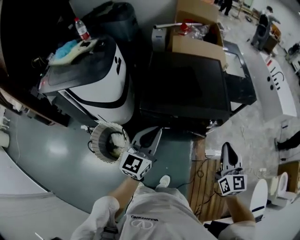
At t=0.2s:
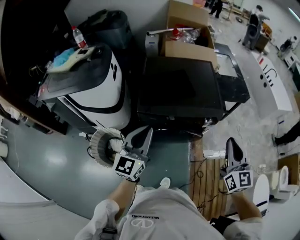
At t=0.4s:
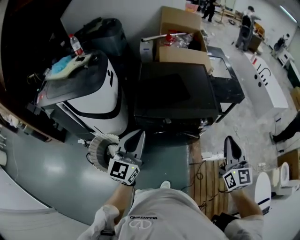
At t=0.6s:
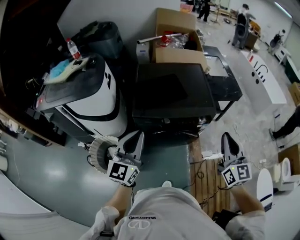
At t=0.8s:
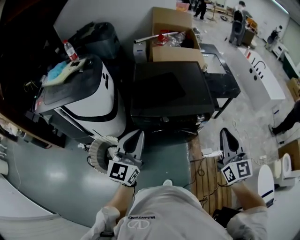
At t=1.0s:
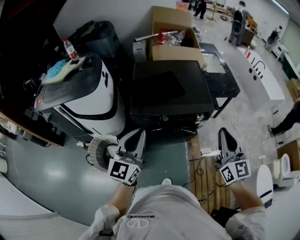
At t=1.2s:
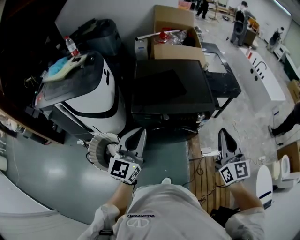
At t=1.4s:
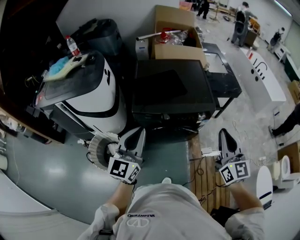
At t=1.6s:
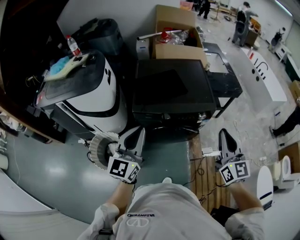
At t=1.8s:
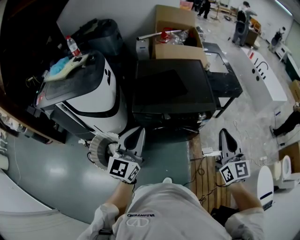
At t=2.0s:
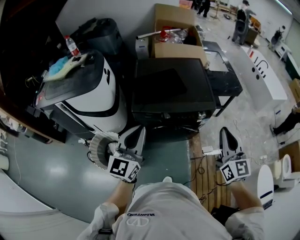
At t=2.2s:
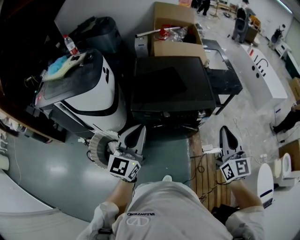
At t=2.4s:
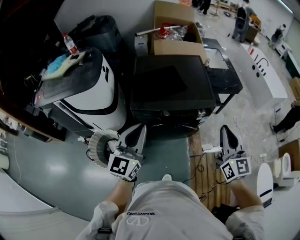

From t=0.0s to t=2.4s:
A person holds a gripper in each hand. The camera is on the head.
From t=0.0s to t=1.2s: The right gripper travels upward and backward by roughly 10 cm, while the left gripper heads backward and upward, covering about 10 cm.
From t=1.2s to t=2.4s: The grippers stay close to where they were, moving slightly.

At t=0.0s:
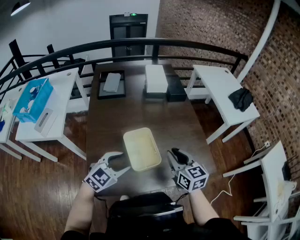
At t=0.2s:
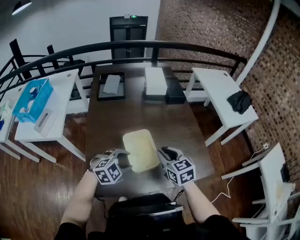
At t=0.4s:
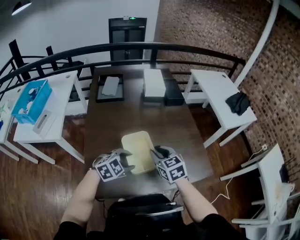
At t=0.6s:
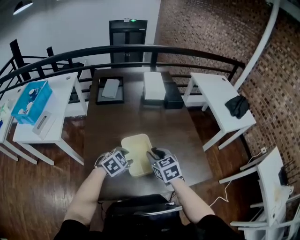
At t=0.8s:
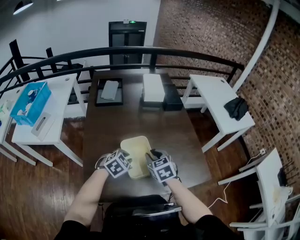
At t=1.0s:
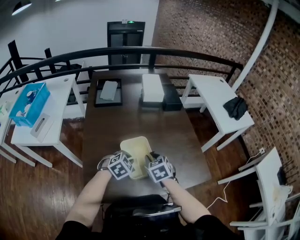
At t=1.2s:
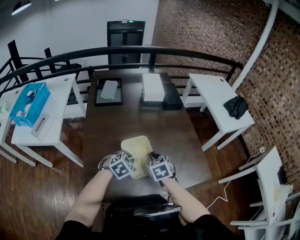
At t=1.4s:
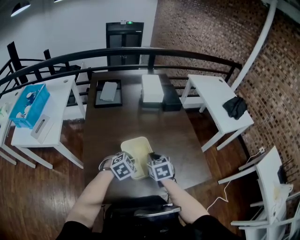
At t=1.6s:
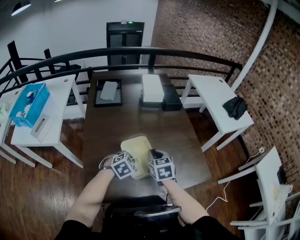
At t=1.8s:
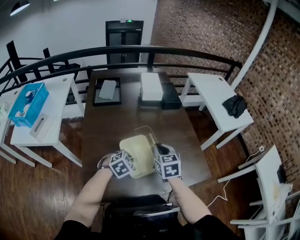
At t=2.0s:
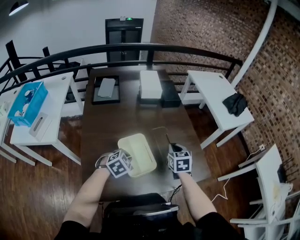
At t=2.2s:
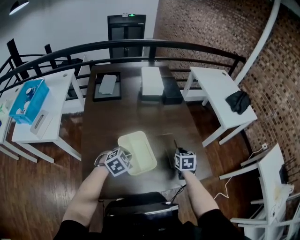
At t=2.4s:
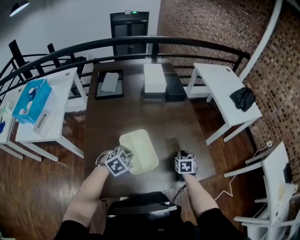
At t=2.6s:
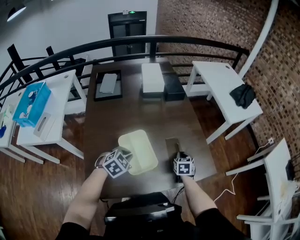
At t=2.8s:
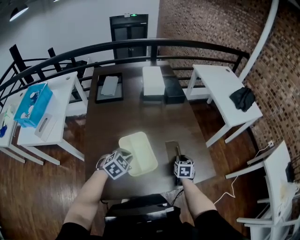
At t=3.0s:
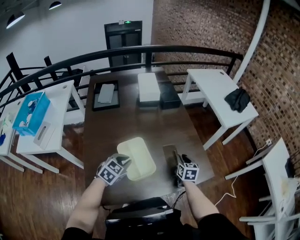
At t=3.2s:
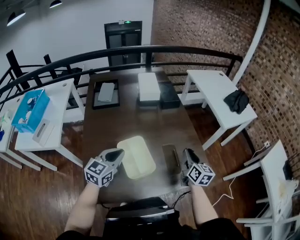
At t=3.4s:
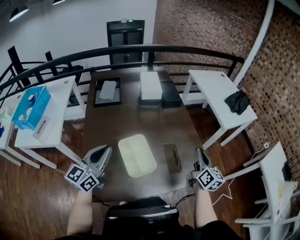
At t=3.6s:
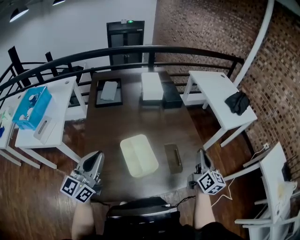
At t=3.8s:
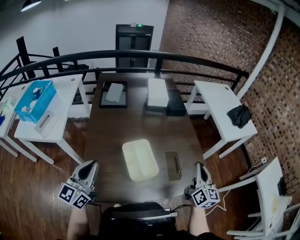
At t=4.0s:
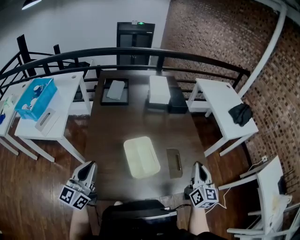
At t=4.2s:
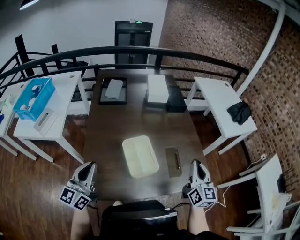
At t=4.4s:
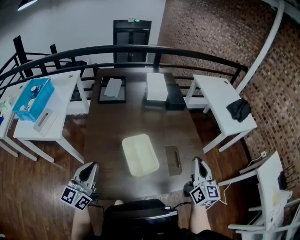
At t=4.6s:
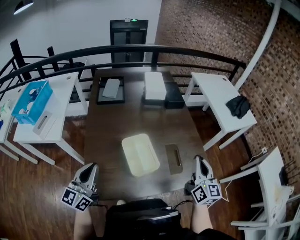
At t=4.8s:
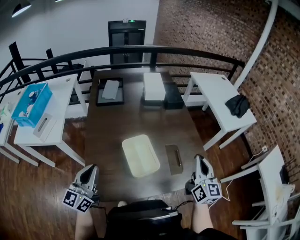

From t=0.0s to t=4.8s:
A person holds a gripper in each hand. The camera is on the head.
From t=0.0s to t=1.6s: The right gripper heads downward and to the left, covering about 10 cm, and turns by about 20 degrees, while the left gripper is displaced downward and forward by some 10 cm, changes its angle by roughly 30 degrees, and closes its fingers.
From t=1.6s to t=3.2s: The left gripper is displaced upward by some 10 cm, and tips its fingers upward by some 40 degrees, while the right gripper moves to the right, roughly 20 cm, swivels some 40 degrees, and opens its fingers.
From t=3.2s to t=4.8s: The right gripper heads upward and backward, covering some 15 cm, and closes up; the left gripper is displaced backward and to the left by some 20 cm, and swivels approximately 30 degrees.

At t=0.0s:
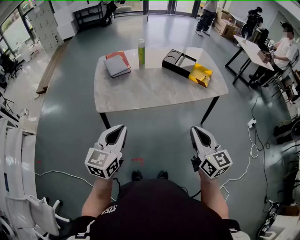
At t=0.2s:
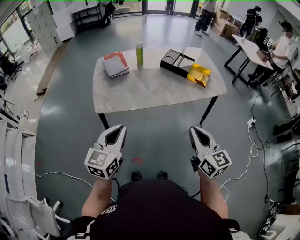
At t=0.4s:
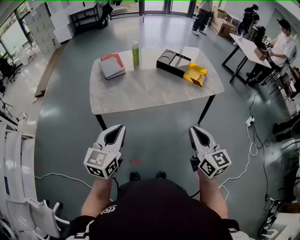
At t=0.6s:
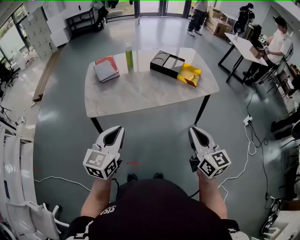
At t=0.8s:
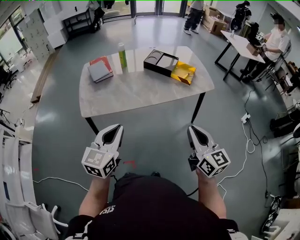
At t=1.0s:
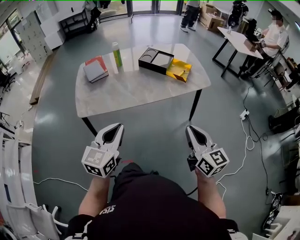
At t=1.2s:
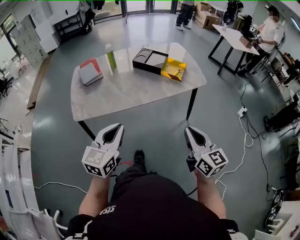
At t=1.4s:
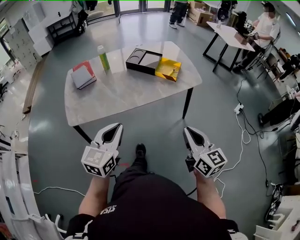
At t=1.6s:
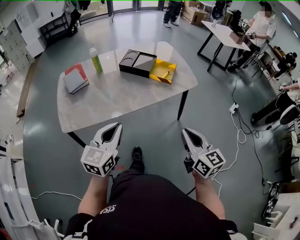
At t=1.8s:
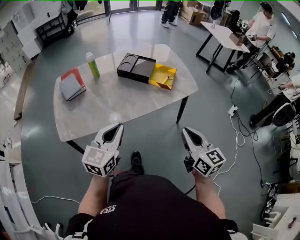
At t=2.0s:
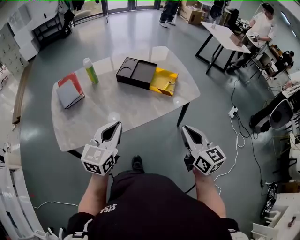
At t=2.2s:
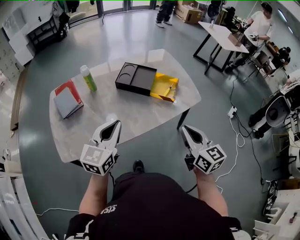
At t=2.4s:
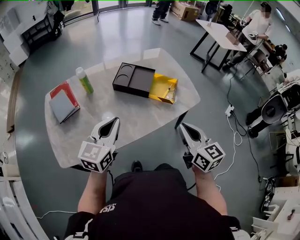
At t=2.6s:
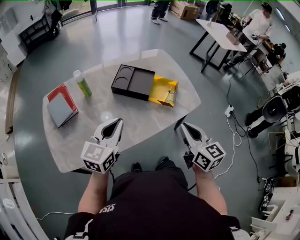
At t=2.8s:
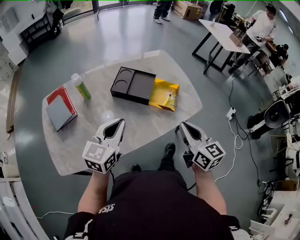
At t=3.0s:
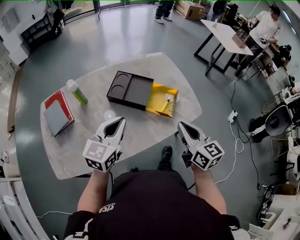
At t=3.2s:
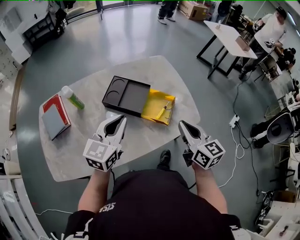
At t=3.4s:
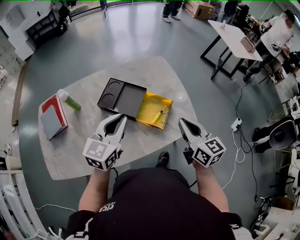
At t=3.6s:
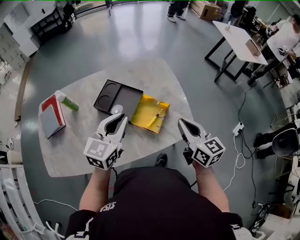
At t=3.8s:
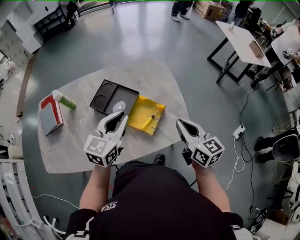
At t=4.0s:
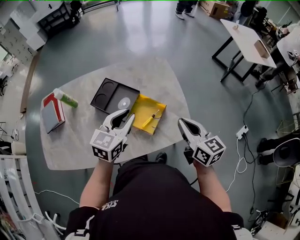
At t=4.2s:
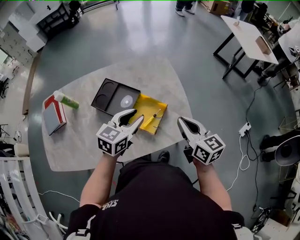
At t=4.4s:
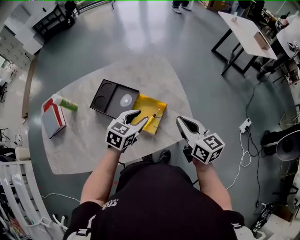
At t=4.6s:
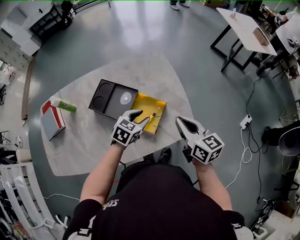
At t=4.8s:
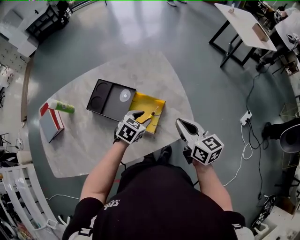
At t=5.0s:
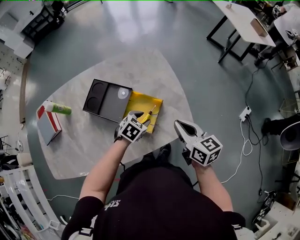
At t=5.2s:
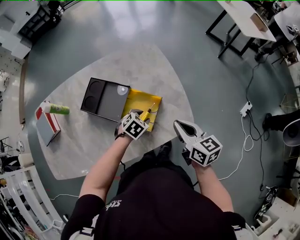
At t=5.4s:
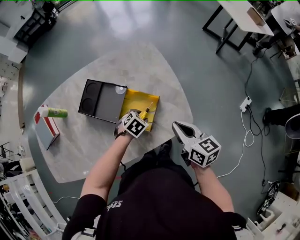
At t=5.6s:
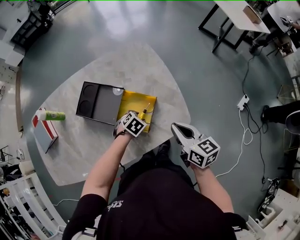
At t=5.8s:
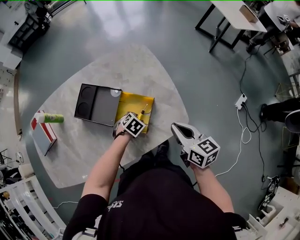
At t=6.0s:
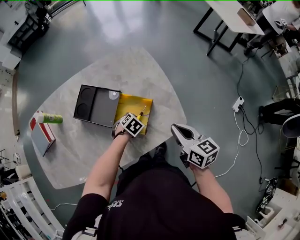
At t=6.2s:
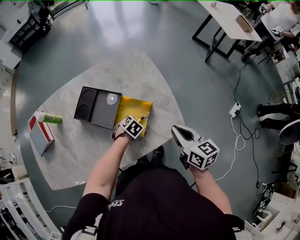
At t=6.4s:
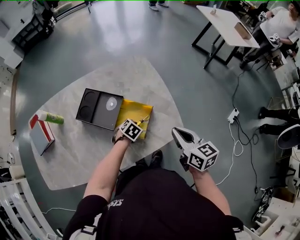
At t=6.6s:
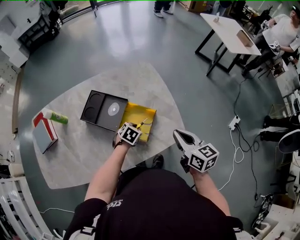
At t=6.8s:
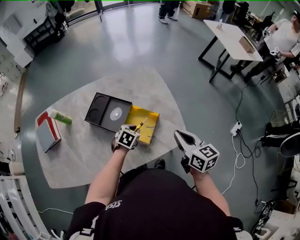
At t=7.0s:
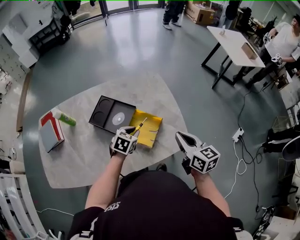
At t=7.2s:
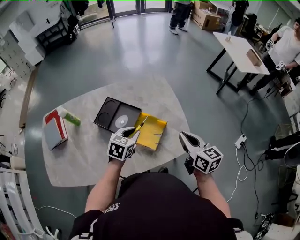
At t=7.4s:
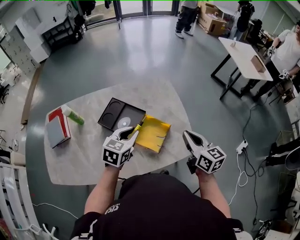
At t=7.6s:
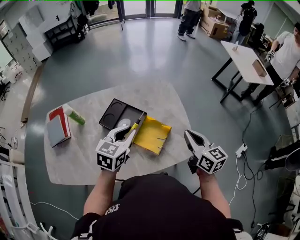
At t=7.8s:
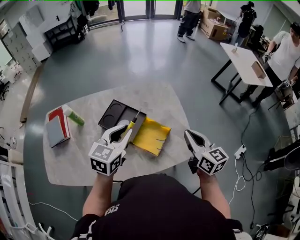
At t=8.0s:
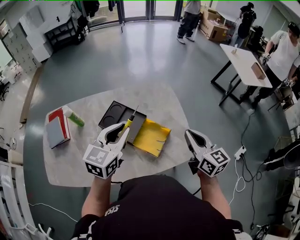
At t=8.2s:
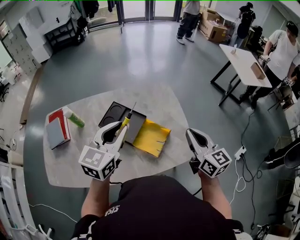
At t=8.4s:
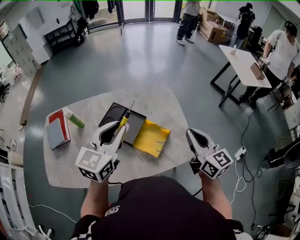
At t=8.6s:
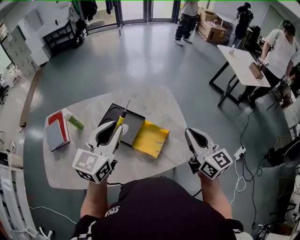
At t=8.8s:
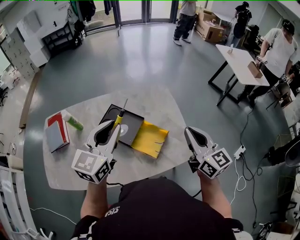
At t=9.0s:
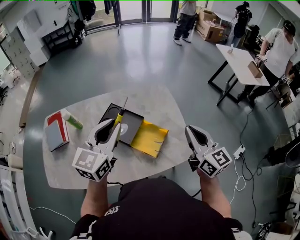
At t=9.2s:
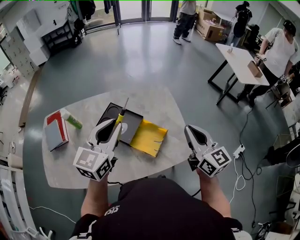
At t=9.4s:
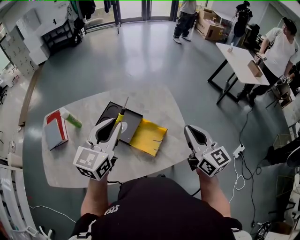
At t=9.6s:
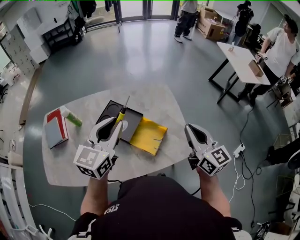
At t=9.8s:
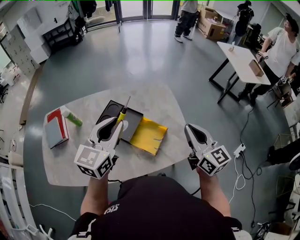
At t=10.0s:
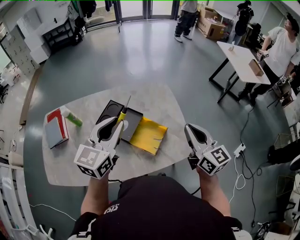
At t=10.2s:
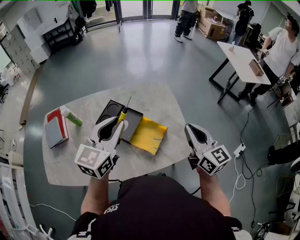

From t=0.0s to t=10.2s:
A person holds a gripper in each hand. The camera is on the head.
From t=0.0s to t=1.4s: Both grippers travel together to the right, about 15 cm.
From t=1.4s to t=3.0s: Both grippers travel together forward, roughly 35 cm.
From t=3.0s to t=4.4s: The left gripper moves to the right, forward and downward, some 30 cm, turns by approximately 20 degrees, and opens up. The right gripper shifts roughly 20 cm to the right and forward.
From t=4.4s to t=5.8s: The right gripper moves downward, roughly 5 cm. The left gripper moves downward, roughly 20 cm, and tilts its fingers approximately 40 degrees downward.
From t=5.8s to t=7.2s: The right gripper goes some 5 cm upward, while the left gripper goes approximately 20 cm upward, tilts its fingers approximately 30 degrees upward, and closes its fingers.
From t=7.2s to t=8.8s: The left gripper is displaced upward by roughly 25 cm, and tips its fingers upward by approximately 30 degrees, while the right gripper travels upward by about 10 cm.
From t=8.8s to t=10.2s: The grippers move only a little.

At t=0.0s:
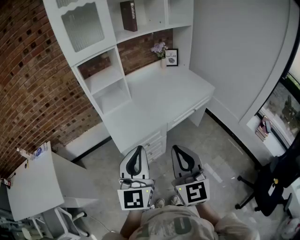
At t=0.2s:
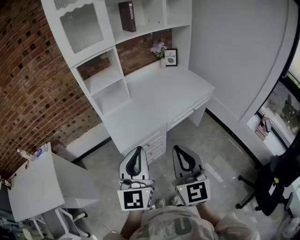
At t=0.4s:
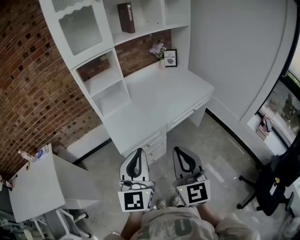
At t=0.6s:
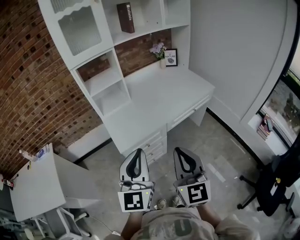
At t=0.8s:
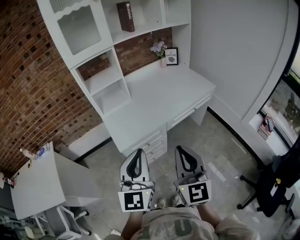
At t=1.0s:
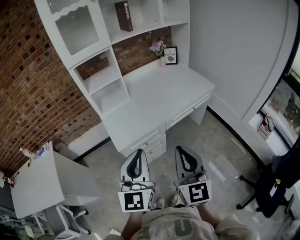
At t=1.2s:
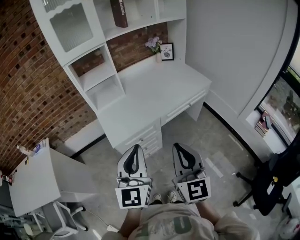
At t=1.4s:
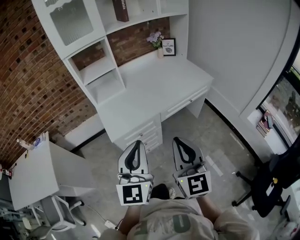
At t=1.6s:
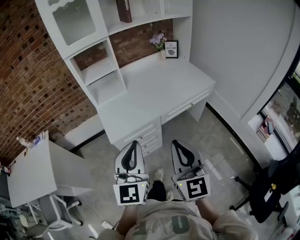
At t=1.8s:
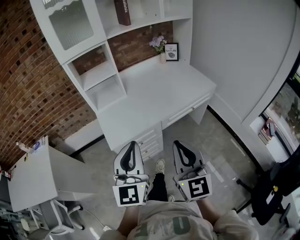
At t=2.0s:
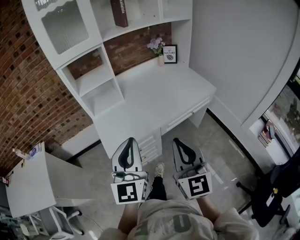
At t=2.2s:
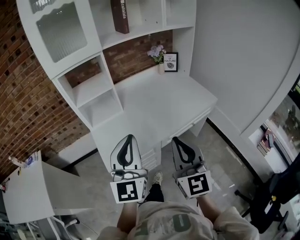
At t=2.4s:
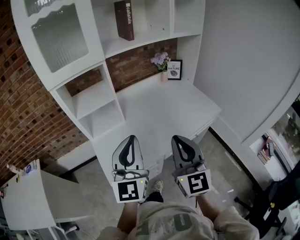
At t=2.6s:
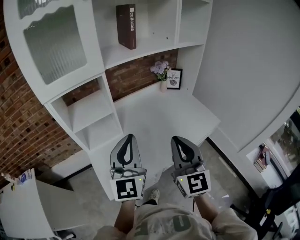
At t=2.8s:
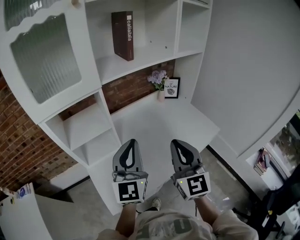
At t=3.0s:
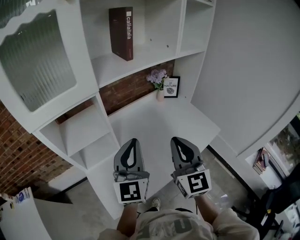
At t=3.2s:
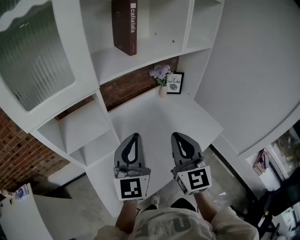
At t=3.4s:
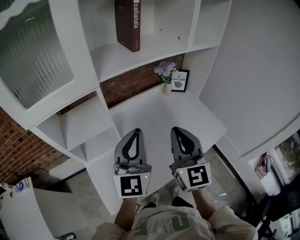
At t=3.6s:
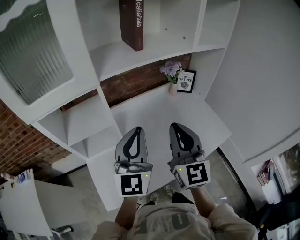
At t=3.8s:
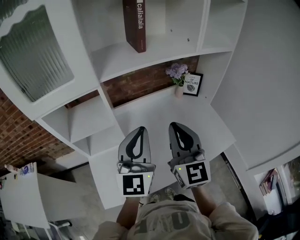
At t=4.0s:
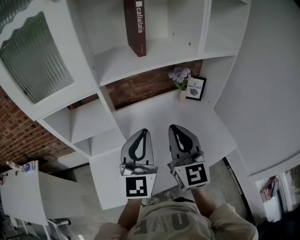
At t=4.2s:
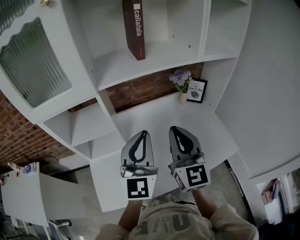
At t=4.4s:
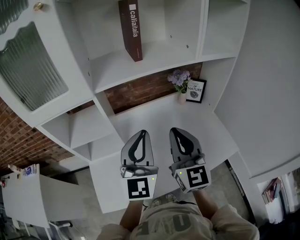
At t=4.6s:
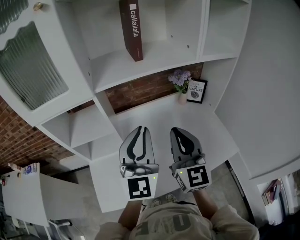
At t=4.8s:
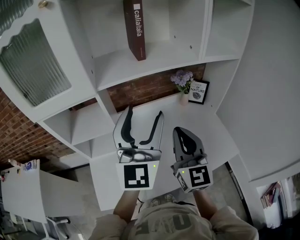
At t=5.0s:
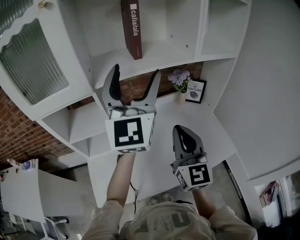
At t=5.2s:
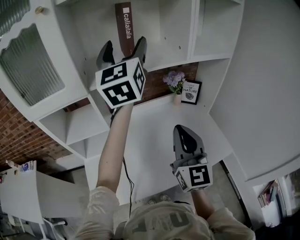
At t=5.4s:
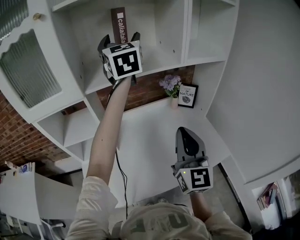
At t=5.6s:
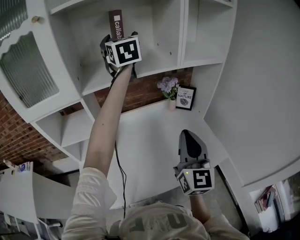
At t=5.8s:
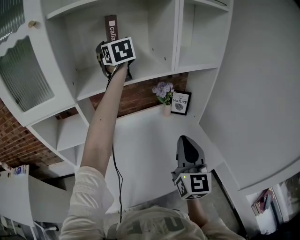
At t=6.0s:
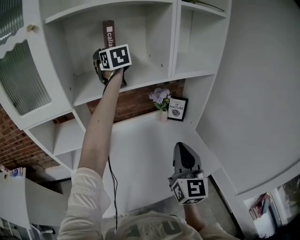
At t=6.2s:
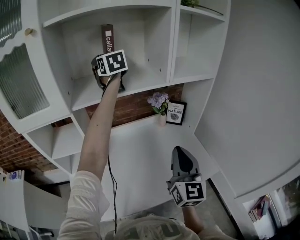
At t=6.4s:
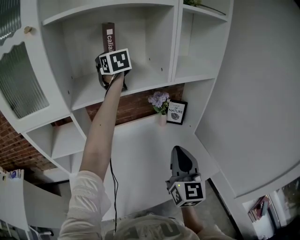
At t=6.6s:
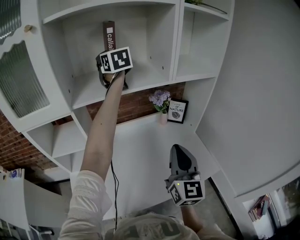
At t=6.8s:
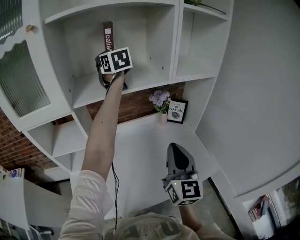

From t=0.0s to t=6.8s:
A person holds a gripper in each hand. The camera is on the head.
From t=0.0s to t=1.4s: Both grippers move to the right, approximately 10 cm.
From t=1.4s to t=2.8s: The two grippers travel together, forward, approximately 40 cm.
From t=2.8s to t=4.0s: The left gripper heads forward and to the right, covering roughly 10 cm. Meanwhile the right gripper is displaced forward by some 15 cm.
From t=4.0s to t=5.4s: The right gripper is displaced to the right by some 10 cm; the left gripper shifts about 35 cm forward and upward, and opens up.
From t=5.4s to t=6.8s: The left gripper moves forward, roughly 10 cm, and closes up.
